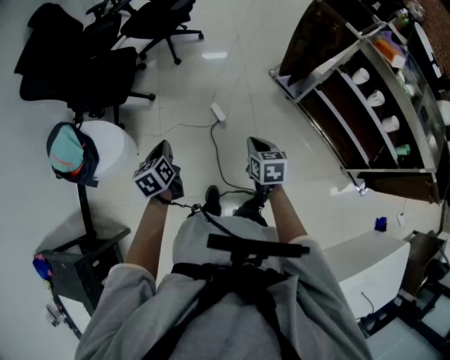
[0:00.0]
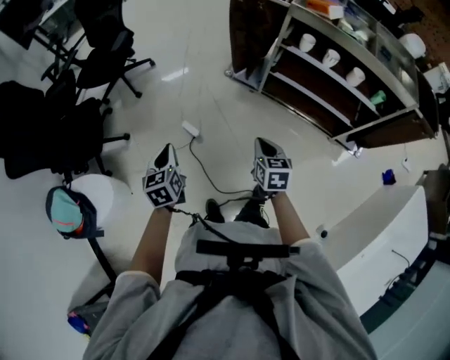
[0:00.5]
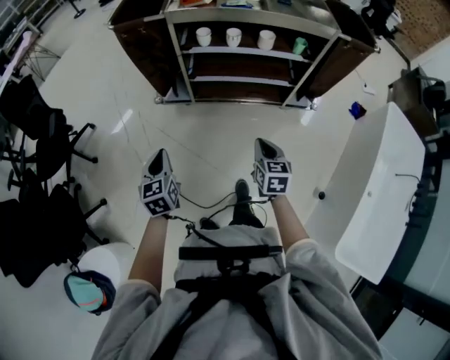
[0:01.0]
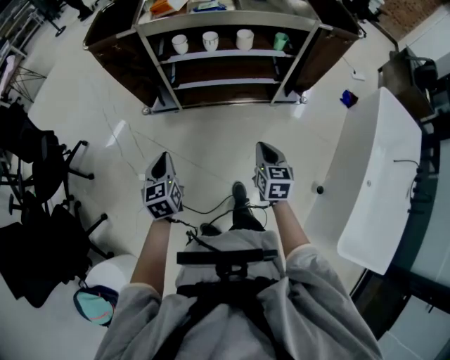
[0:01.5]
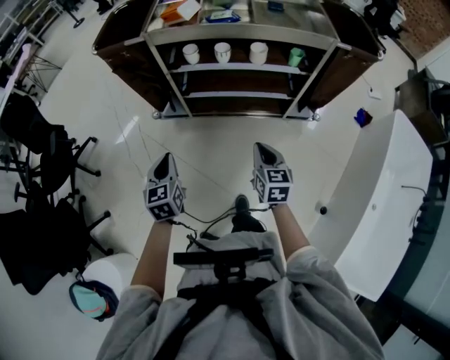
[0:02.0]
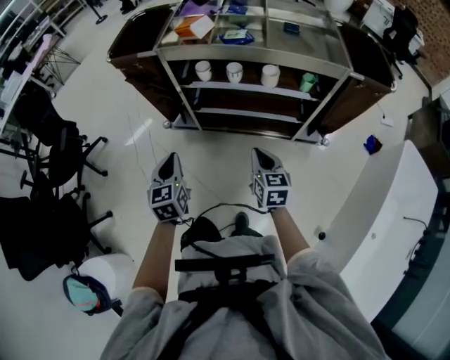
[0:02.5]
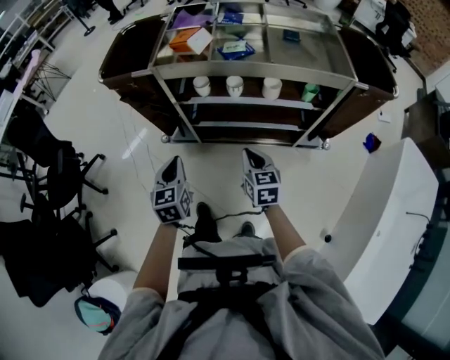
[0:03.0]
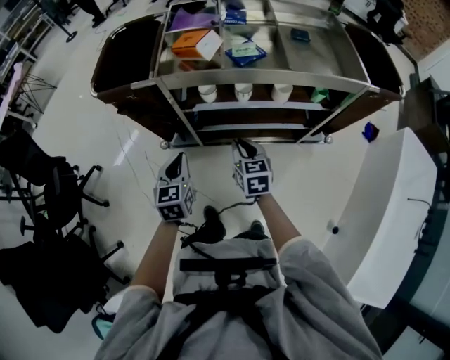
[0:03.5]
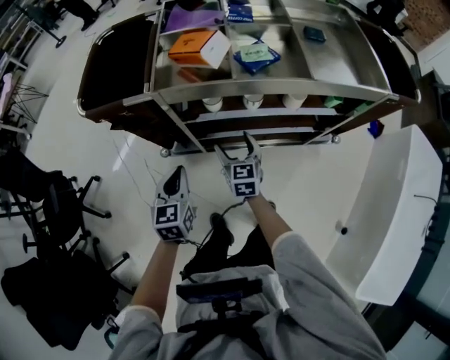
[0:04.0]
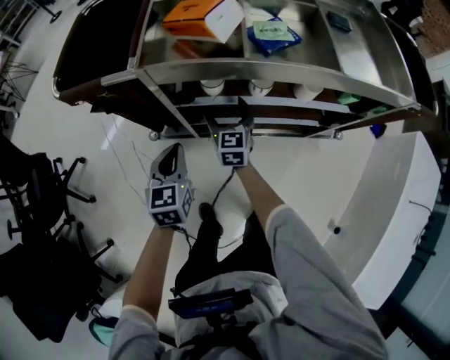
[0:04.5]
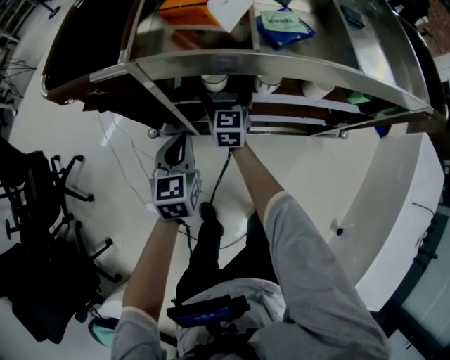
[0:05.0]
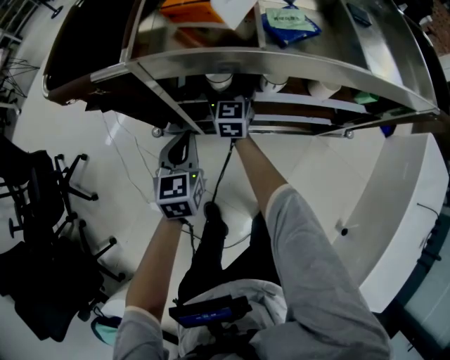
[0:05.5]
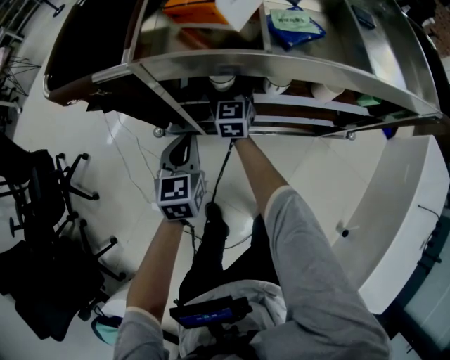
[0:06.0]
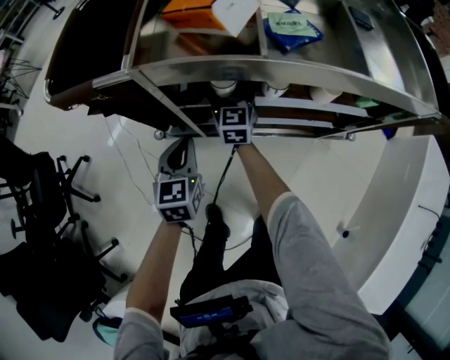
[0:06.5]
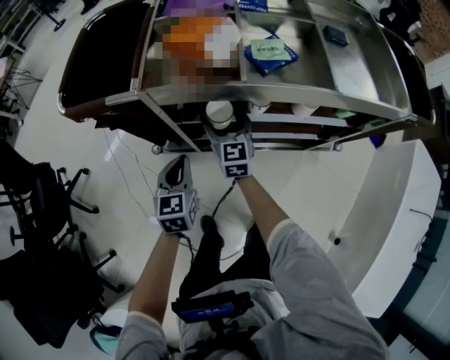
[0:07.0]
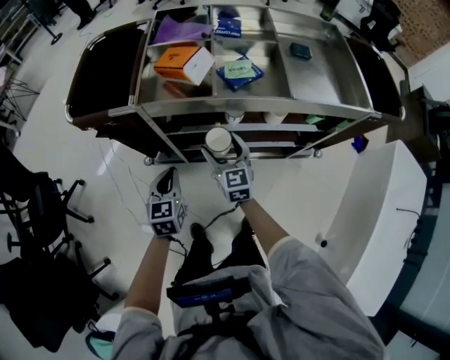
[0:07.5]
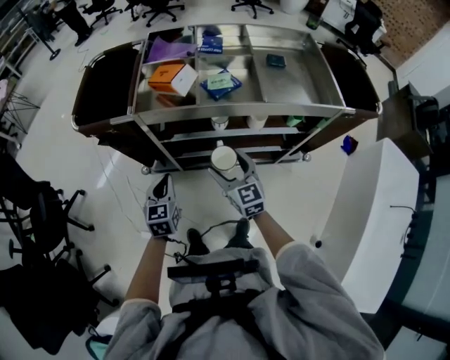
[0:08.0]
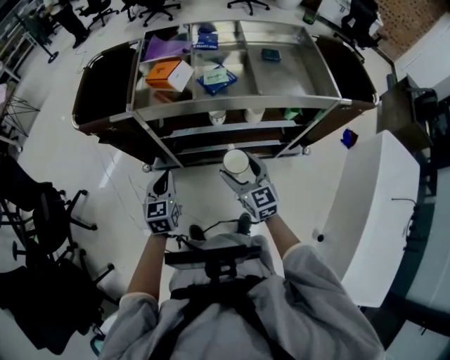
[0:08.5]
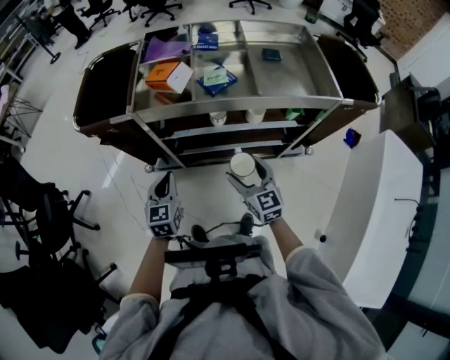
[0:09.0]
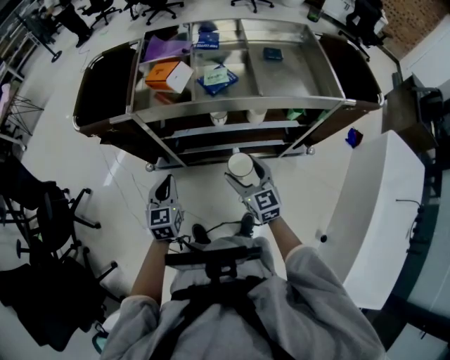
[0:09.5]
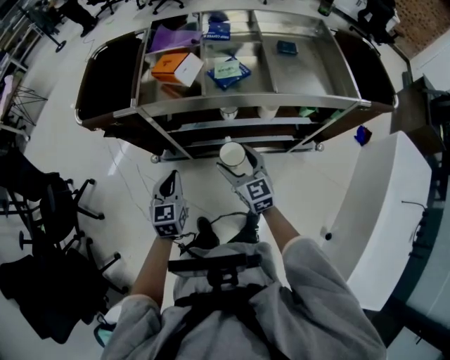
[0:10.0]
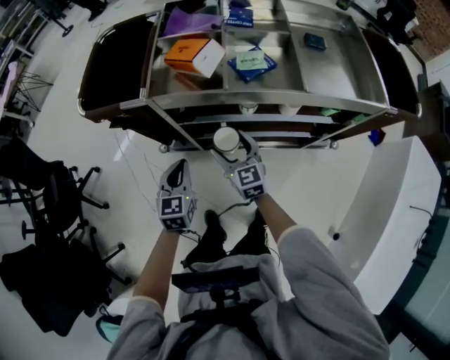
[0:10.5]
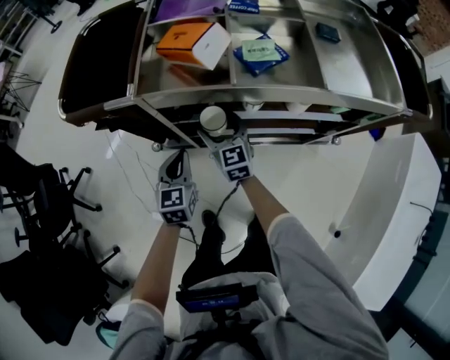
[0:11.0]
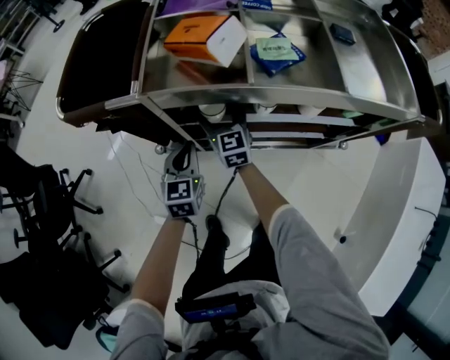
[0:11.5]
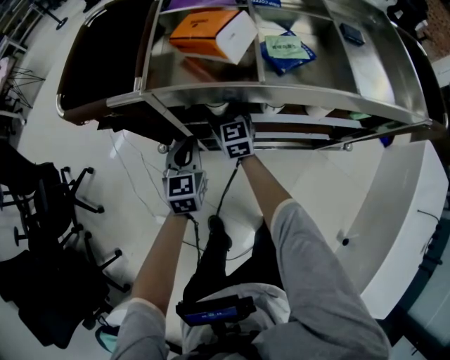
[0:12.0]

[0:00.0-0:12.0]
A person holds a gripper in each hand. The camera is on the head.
0:00.0 to 0:02.0: The two grippers travel together, about 50 cm. The left gripper changes its angle by roughly 60 degrees; the right gripper rotates approximately 50 degrees.
0:02.0 to 0:04.0: The left gripper is displaced forward by approximately 30 cm. Meanwhile the right gripper heads forward and to the left, covering some 40 cm, and opens its fingers.
0:04.0 to 0:06.0: The left gripper travels forward and downward by roughly 15 cm. The right gripper is displaced forward by about 20 cm.
0:06.0 to 0:08.0: The left gripper shifts approximately 15 cm upward and backward, while the right gripper travels backward, upward and to the right by roughly 35 cm.
0:10.0 to 0:12.0: The right gripper moves forward, downward and to the left, roughly 30 cm. Meanwhile the left gripper moves forward and downward, about 20 cm.

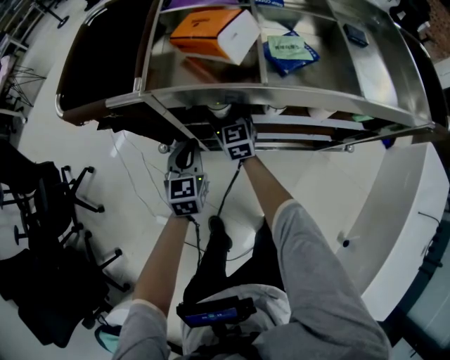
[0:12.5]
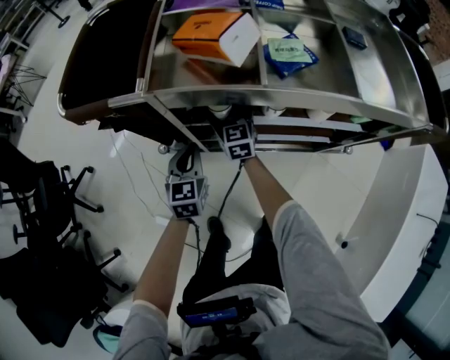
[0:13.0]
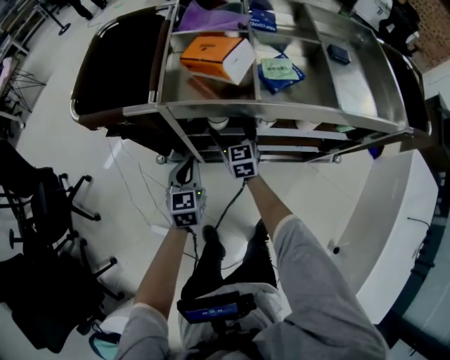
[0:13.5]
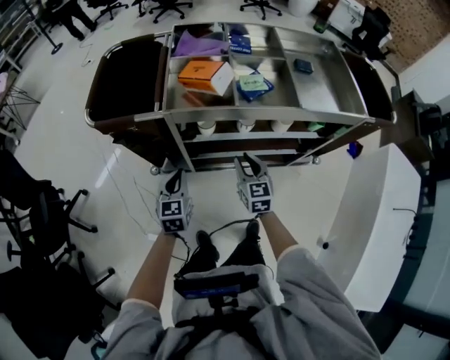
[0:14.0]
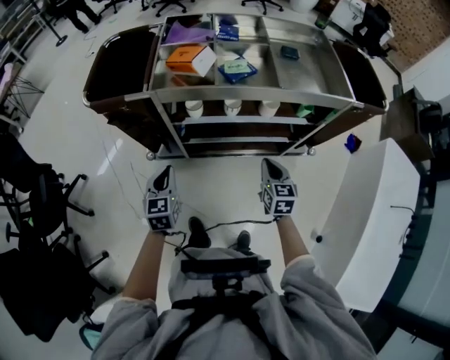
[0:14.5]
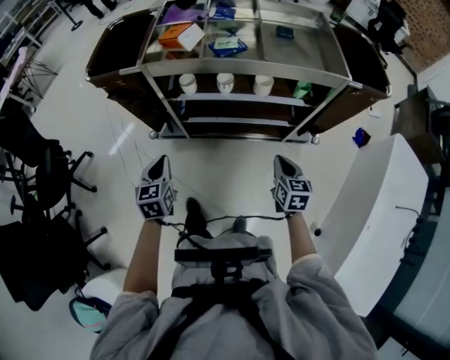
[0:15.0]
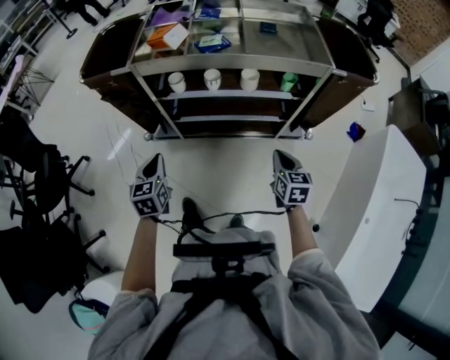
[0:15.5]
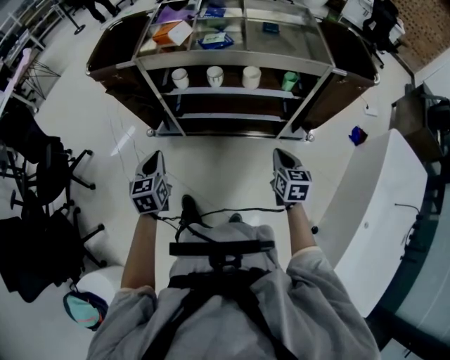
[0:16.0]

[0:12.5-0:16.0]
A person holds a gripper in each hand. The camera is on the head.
0:12.5 to 0:14.5: The left gripper heads backward and upward, covering approximately 25 cm, while the right gripper heads backward and to the right, covering about 40 cm, changes its angle by about 20 degrees, and closes up.
0:14.5 to 0:16.0: The right gripper heads to the right and backward, covering roughly 20 cm, while the left gripper travels backward and to the right by some 15 cm.

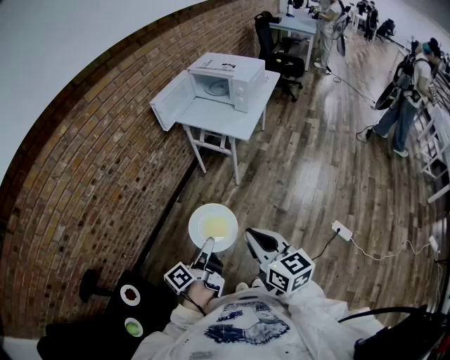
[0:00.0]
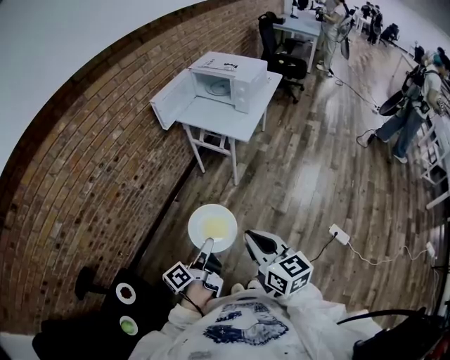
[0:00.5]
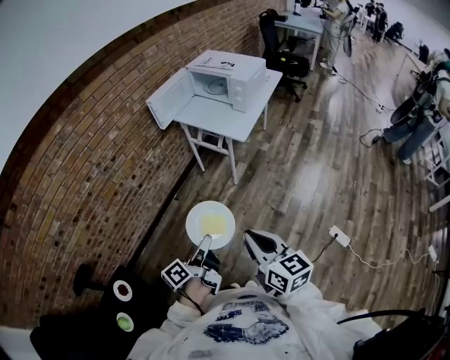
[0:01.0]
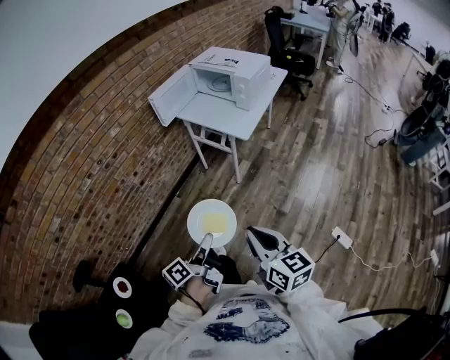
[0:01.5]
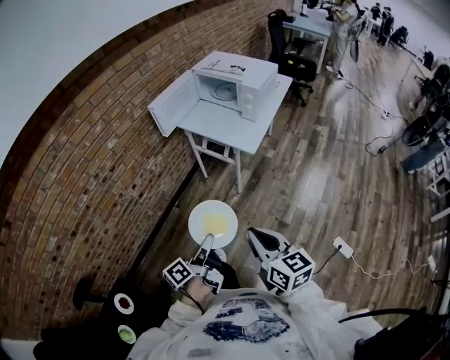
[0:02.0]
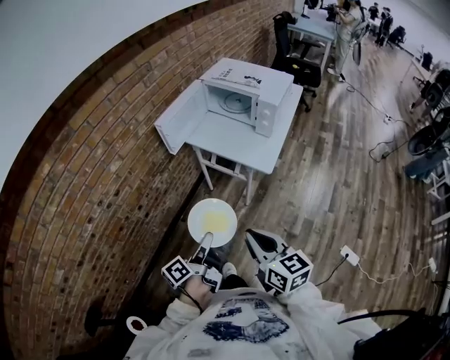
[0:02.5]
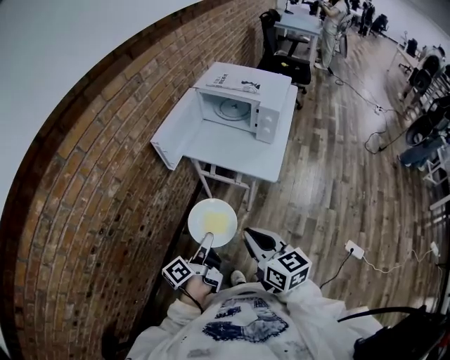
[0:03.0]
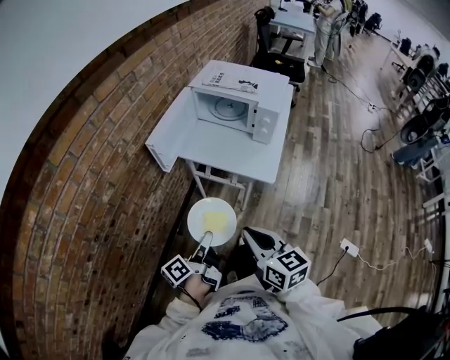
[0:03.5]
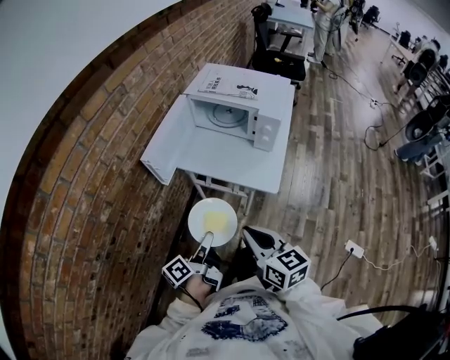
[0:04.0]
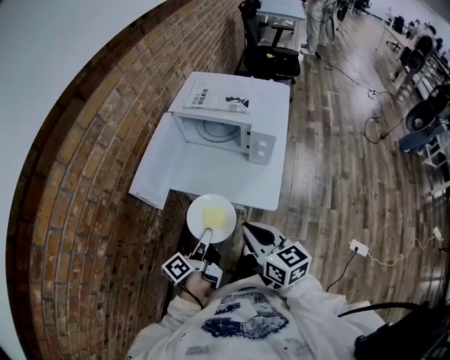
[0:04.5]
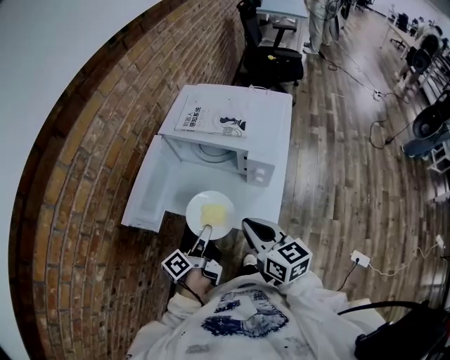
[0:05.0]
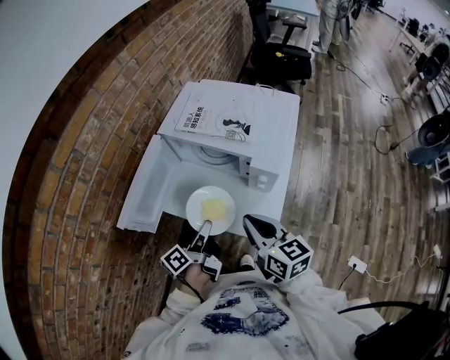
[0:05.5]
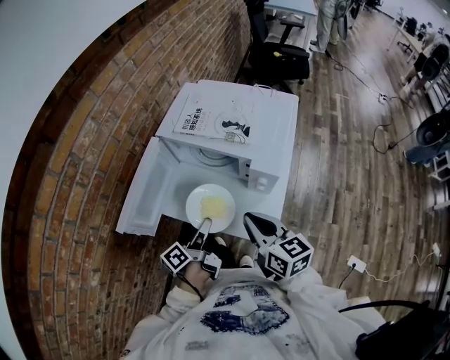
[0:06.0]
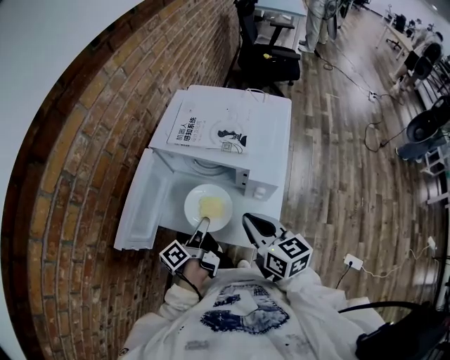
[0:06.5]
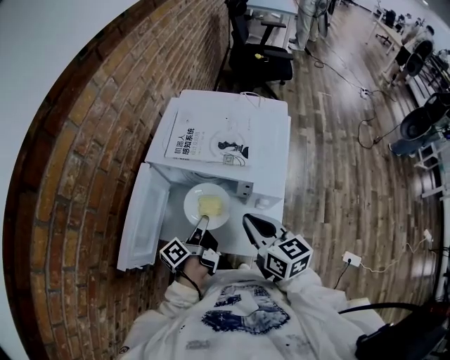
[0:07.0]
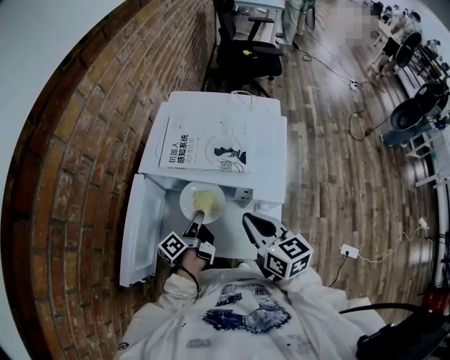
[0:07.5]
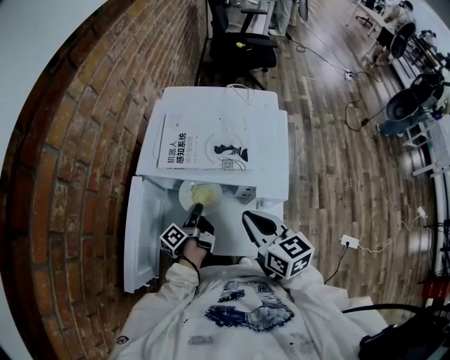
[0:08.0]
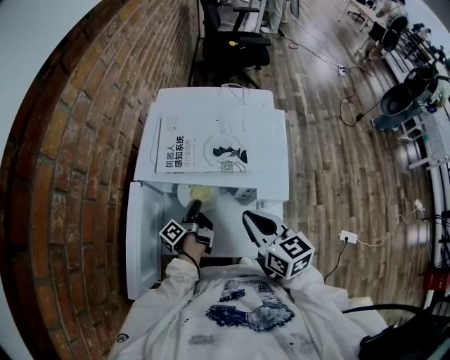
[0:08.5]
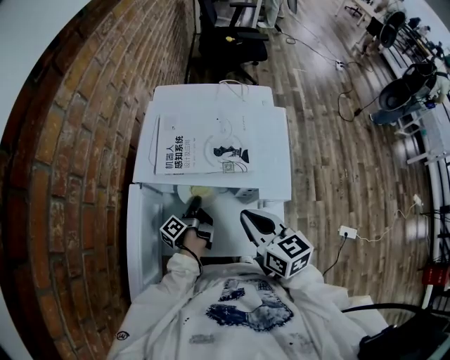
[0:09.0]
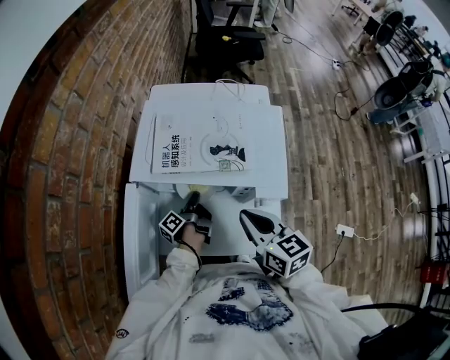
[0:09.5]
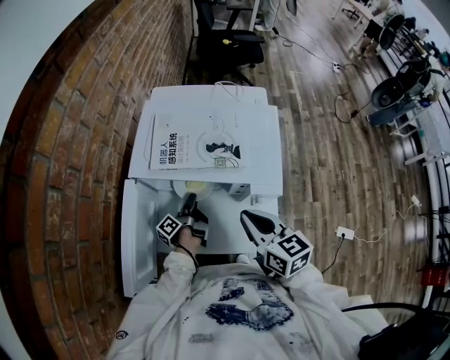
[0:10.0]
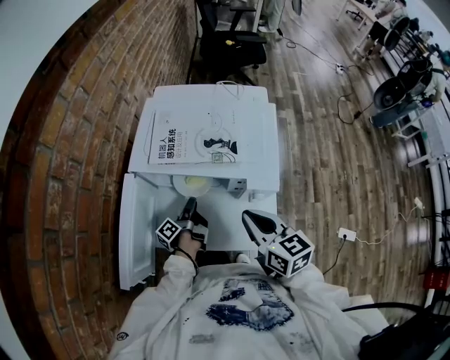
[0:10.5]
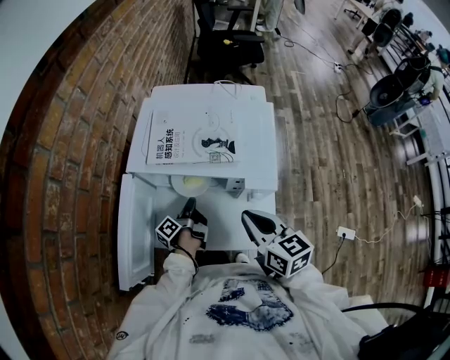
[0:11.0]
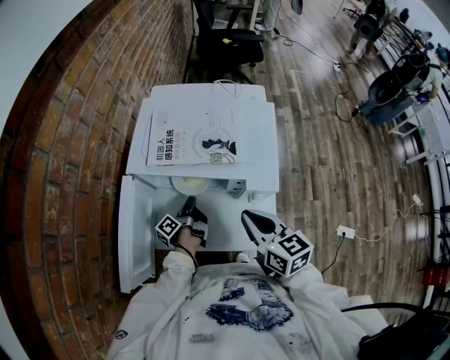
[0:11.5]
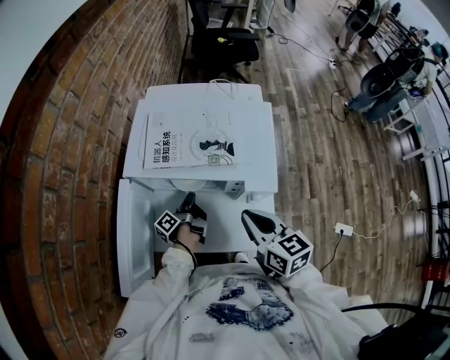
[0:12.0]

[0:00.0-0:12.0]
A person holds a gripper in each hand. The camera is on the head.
0:00.0 to 0:02.0: The right gripper shifts by approximately 15 cm.
0:02.0 to 0:04.0: The right gripper moves roughly 35 cm.
0:04.0 to 0:06.0: The right gripper ends up some 30 cm from where it was.
0:06.0 to 0:08.0: The right gripper shifts by about 10 cm.
